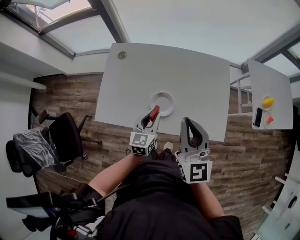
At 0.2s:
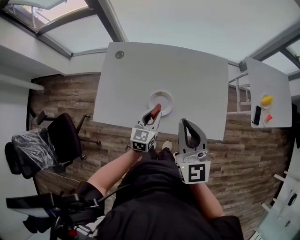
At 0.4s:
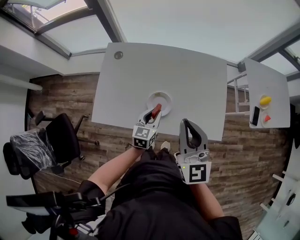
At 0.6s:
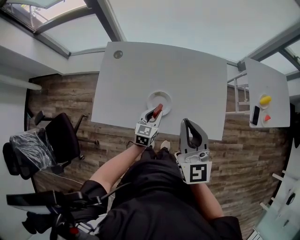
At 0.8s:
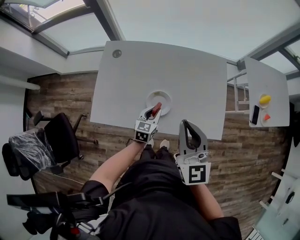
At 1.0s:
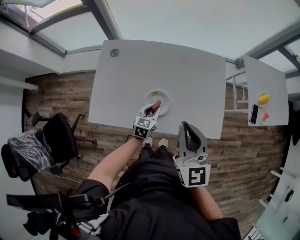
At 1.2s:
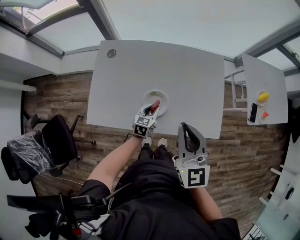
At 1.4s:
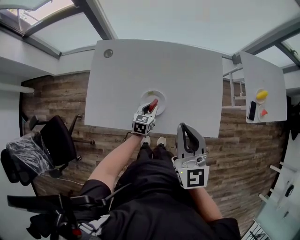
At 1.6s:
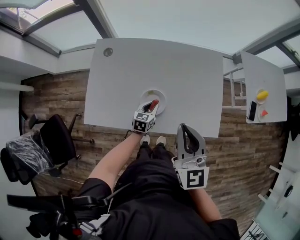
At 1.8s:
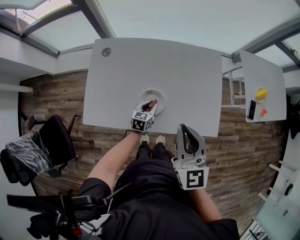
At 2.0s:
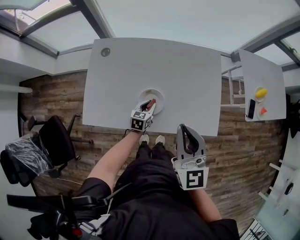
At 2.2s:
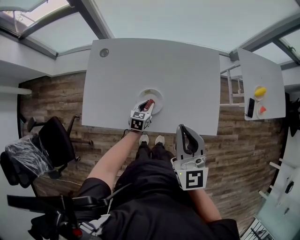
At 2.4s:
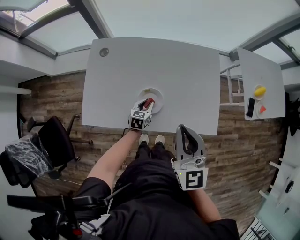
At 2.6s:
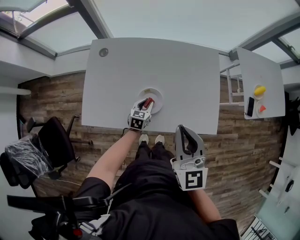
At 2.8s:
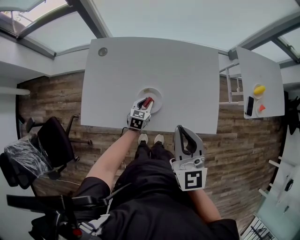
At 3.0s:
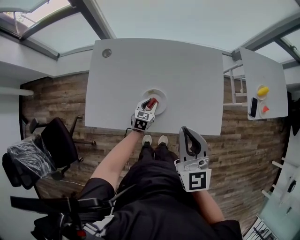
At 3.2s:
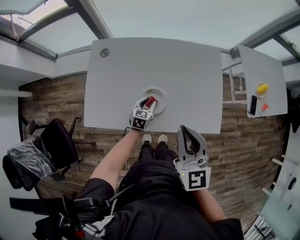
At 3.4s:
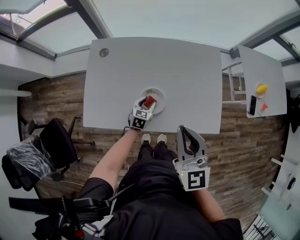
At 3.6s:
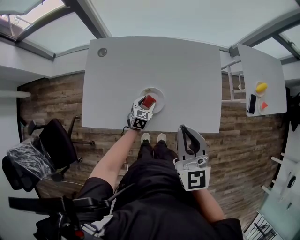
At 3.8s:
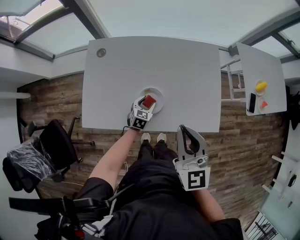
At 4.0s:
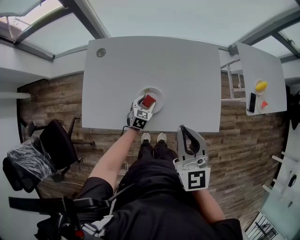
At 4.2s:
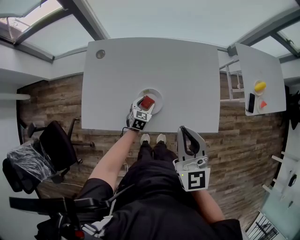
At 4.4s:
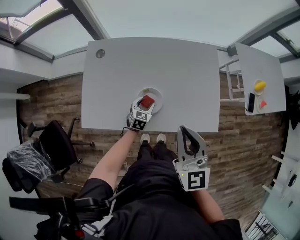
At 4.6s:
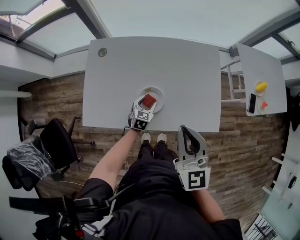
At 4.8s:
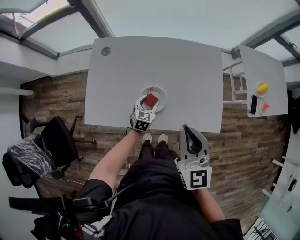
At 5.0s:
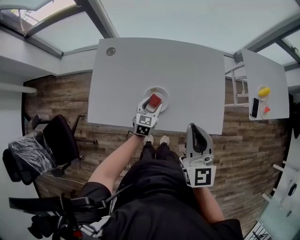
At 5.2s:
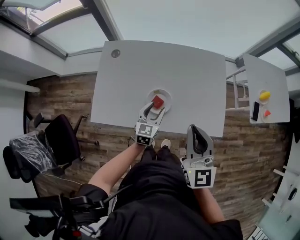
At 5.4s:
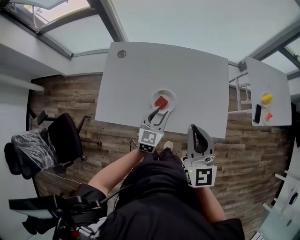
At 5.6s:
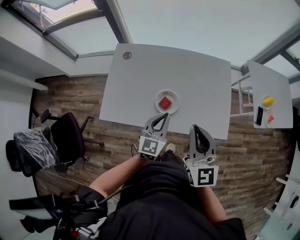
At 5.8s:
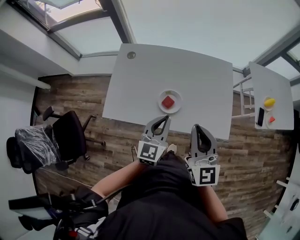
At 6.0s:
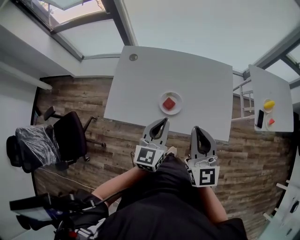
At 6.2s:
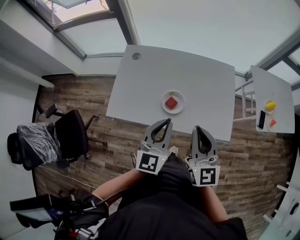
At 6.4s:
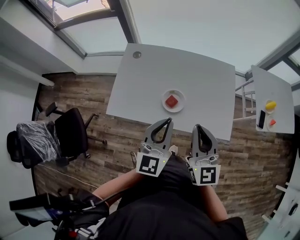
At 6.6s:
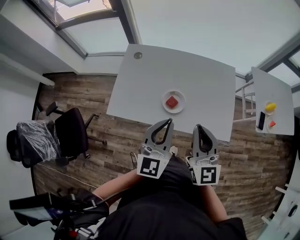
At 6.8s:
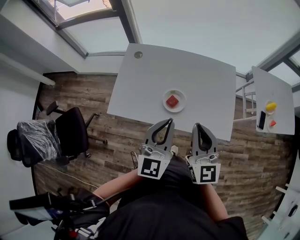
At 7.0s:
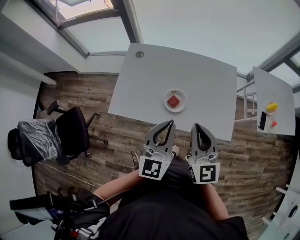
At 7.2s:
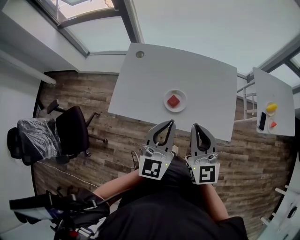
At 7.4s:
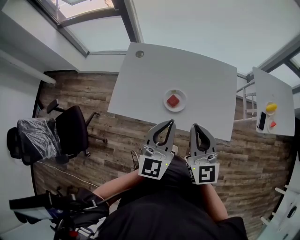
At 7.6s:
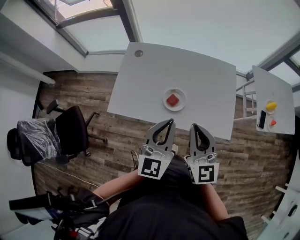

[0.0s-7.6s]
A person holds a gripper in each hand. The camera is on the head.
0.0s to 1.6s: The left gripper is displaced downward by about 15 cm.
1.6s to 3.0s: The grippers make only small movements.
3.0s to 4.6s: The left gripper opens.
4.6s to 6.0s: The right gripper heads backward, covering roughly 5 cm; the left gripper goes about 35 cm upward and backward, changes its angle by some 30 degrees, and closes.
6.0s to 7.6s: The left gripper shifts roughly 5 cm upward.

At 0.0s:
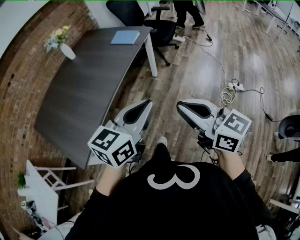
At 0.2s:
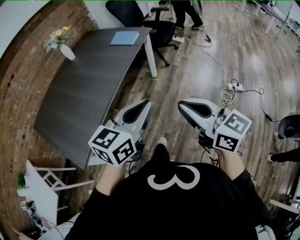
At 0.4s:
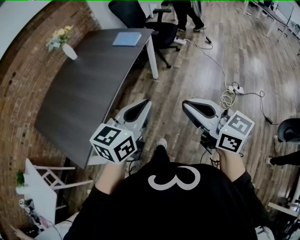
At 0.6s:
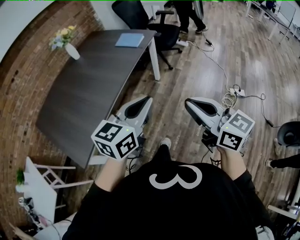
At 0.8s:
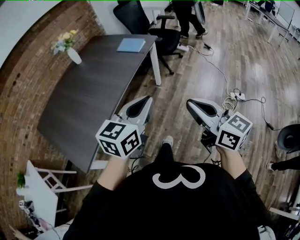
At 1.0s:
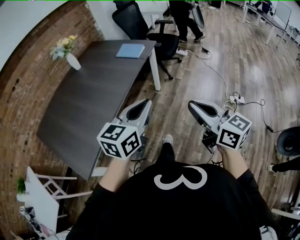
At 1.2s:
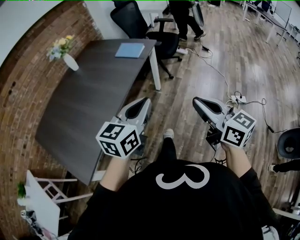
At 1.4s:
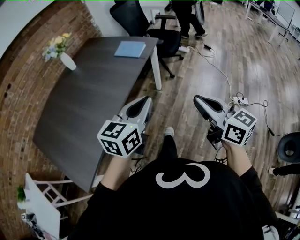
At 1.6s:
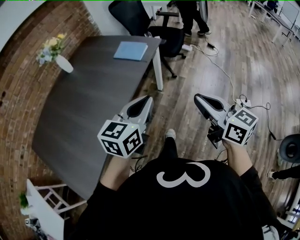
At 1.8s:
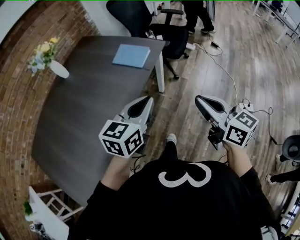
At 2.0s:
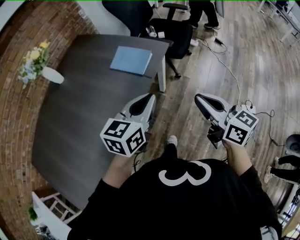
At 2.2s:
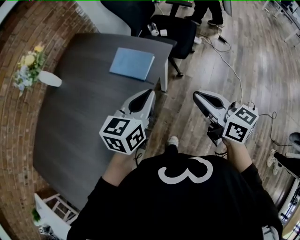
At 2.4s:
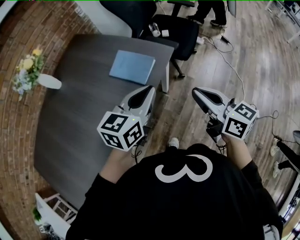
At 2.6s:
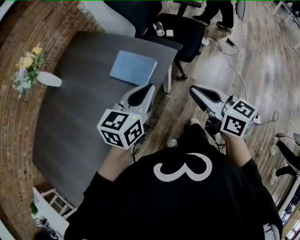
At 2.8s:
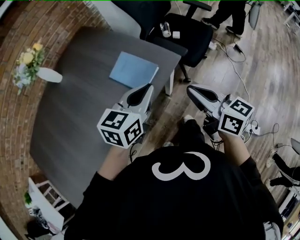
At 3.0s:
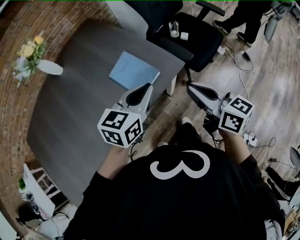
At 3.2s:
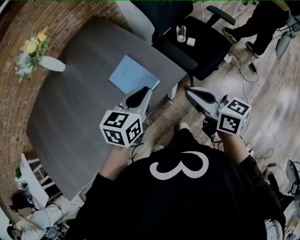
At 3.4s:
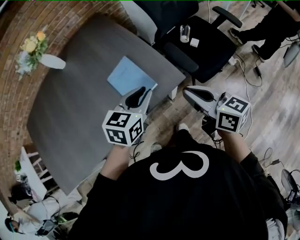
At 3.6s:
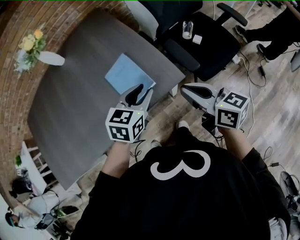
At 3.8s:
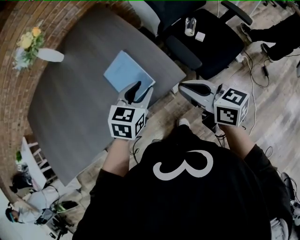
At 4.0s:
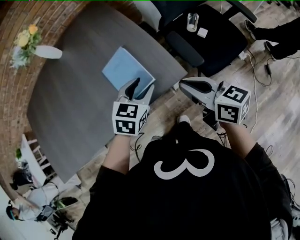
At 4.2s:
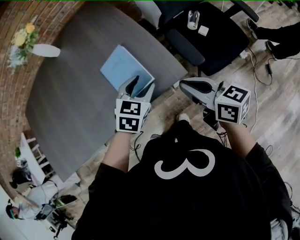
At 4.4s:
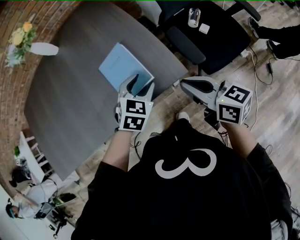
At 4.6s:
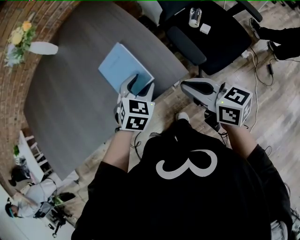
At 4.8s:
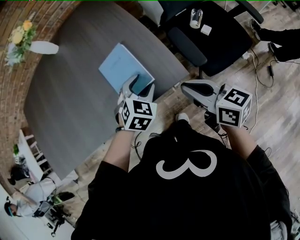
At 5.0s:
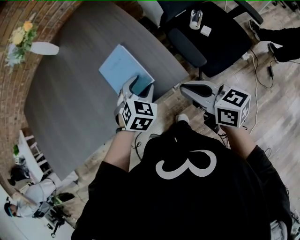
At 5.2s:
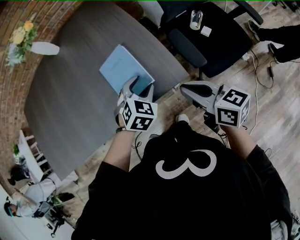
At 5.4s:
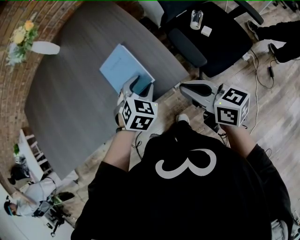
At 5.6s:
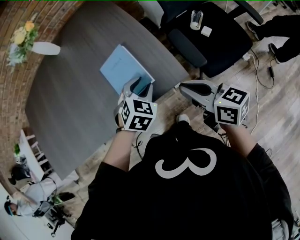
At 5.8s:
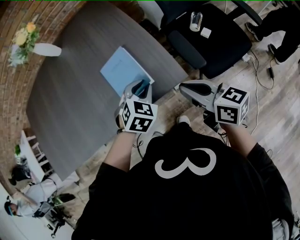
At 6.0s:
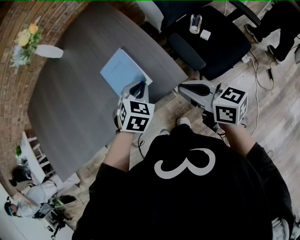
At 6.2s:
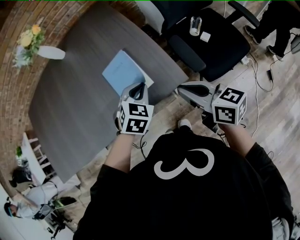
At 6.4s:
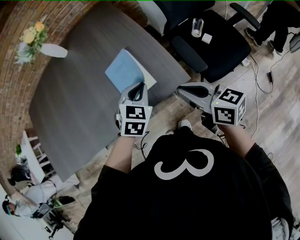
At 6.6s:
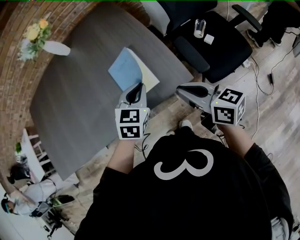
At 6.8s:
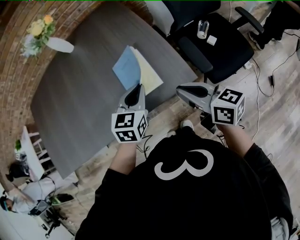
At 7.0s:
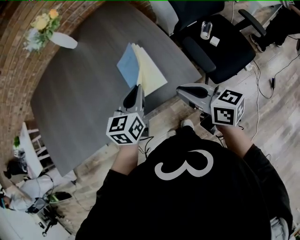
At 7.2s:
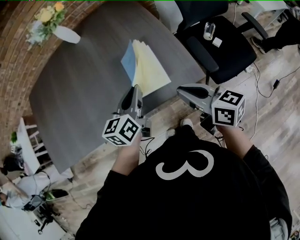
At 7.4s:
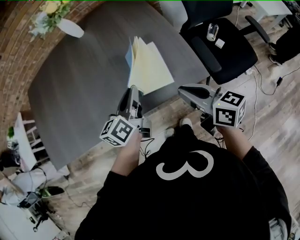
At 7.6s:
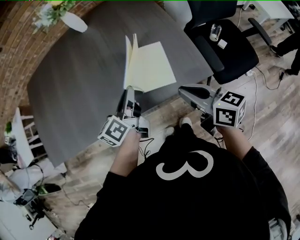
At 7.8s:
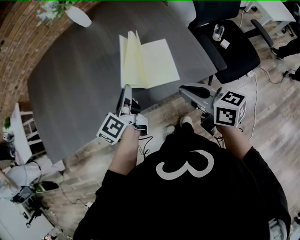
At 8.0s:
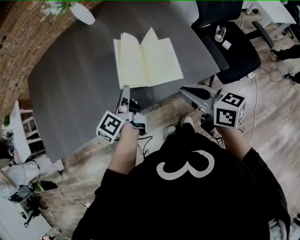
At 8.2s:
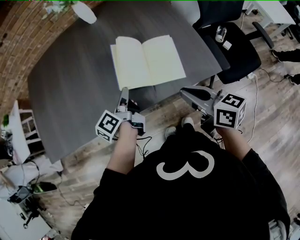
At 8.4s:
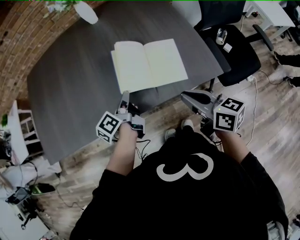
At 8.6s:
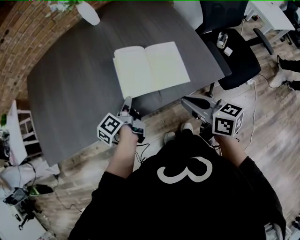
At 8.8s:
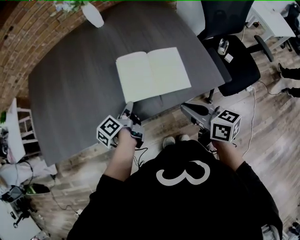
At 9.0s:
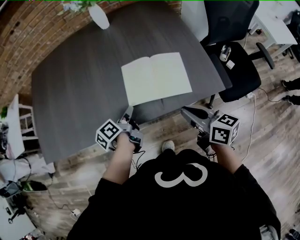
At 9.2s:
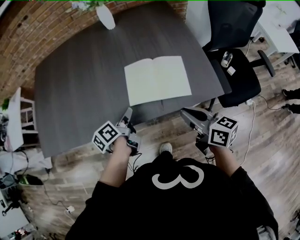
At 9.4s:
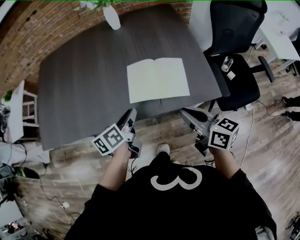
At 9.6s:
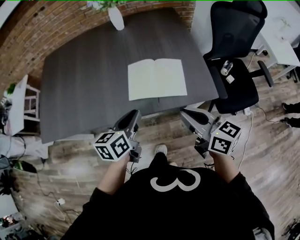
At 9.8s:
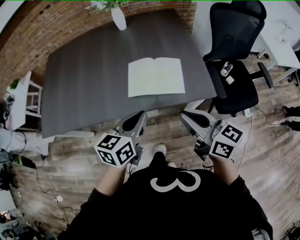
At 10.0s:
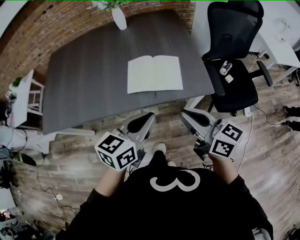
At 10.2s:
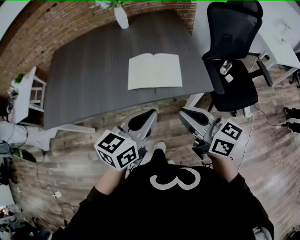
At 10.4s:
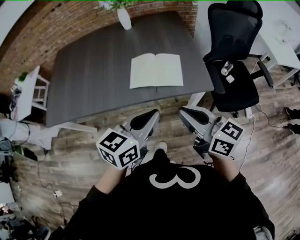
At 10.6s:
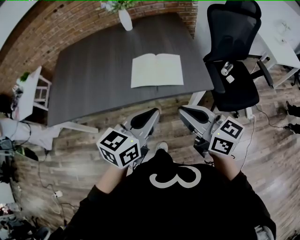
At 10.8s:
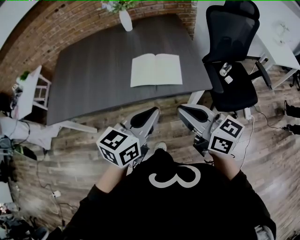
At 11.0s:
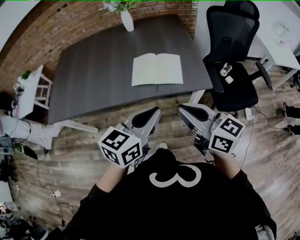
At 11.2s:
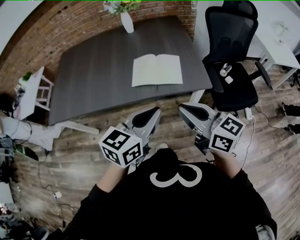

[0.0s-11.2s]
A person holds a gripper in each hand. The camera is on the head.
0.0s to 1.6s: Both grippers travel together forward, some 25 cm.
1.6s to 3.2s: The pair of grippers is taken approximately 50 cm. The left gripper changes its angle by about 30 degrees. The right gripper turns by roughly 30 degrees.
3.2s to 4.8s: The left gripper goes about 15 cm downward and forward, turns by approximately 40 degrees, and opens. Meanwhile the right gripper goes roughly 10 cm downward and forward.
4.8s to 6.4s: The left gripper closes up.
6.4s to 8.0s: The left gripper is displaced to the left by approximately 25 cm, and rotates around the line of its fingers by roughly 90 degrees, counterclockwise from behind. Meanwhile the right gripper shifts approximately 15 cm to the left.
8.0s to 9.6s: The right gripper travels upward by about 5 cm. Meanwhile the left gripper travels backward by roughly 10 cm, moves roughly 10 cm downward and comes back, and swivels some 40 degrees.
9.6s to 11.2s: The left gripper is displaced backward, upward and to the right by approximately 20 cm, and turns by some 30 degrees. Meanwhile the right gripper goes roughly 15 cm backward and upward.

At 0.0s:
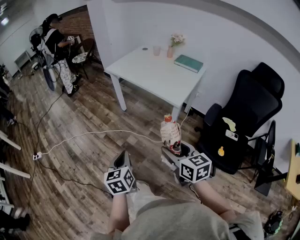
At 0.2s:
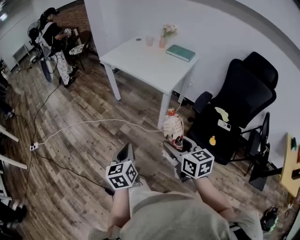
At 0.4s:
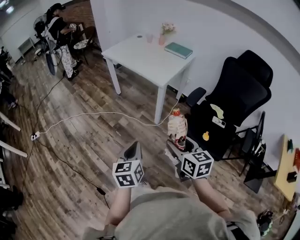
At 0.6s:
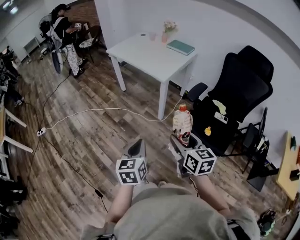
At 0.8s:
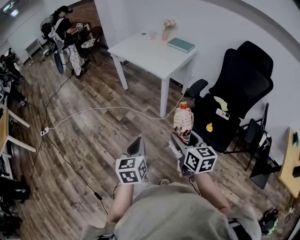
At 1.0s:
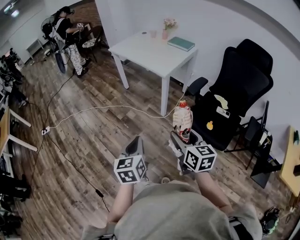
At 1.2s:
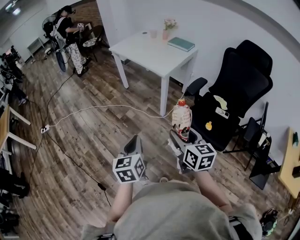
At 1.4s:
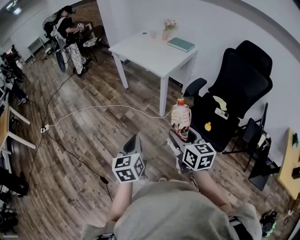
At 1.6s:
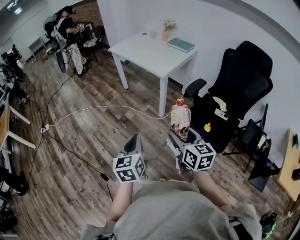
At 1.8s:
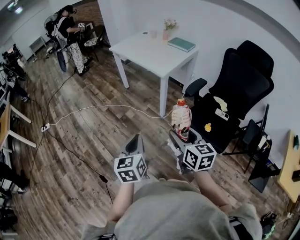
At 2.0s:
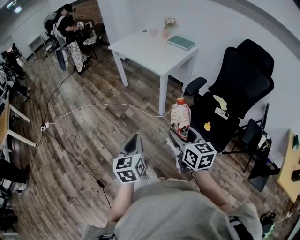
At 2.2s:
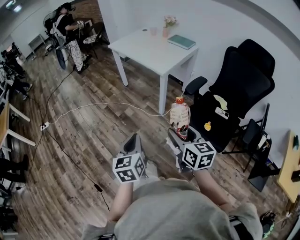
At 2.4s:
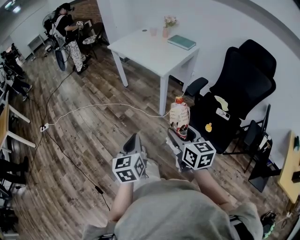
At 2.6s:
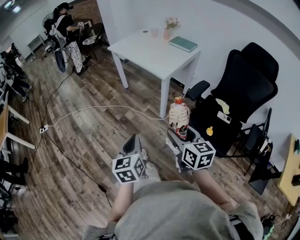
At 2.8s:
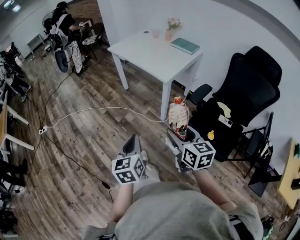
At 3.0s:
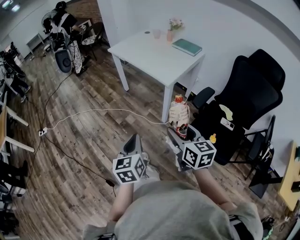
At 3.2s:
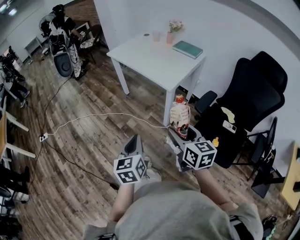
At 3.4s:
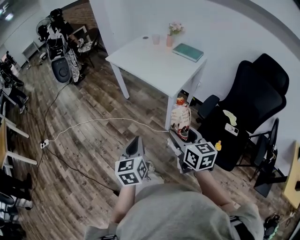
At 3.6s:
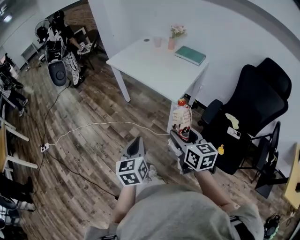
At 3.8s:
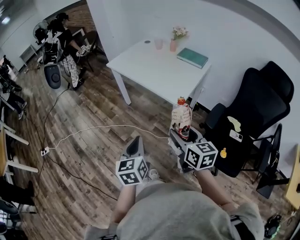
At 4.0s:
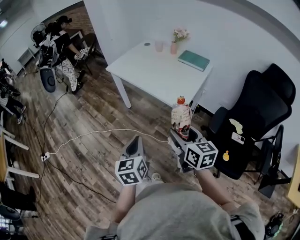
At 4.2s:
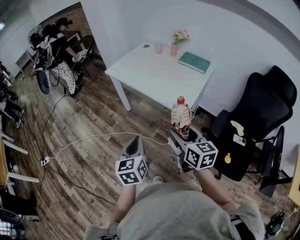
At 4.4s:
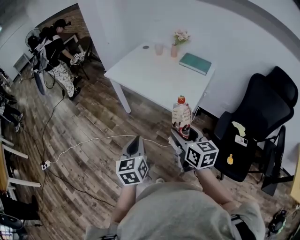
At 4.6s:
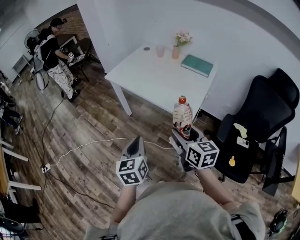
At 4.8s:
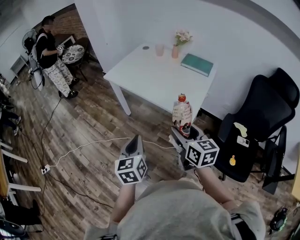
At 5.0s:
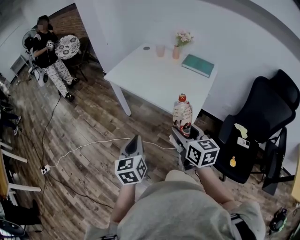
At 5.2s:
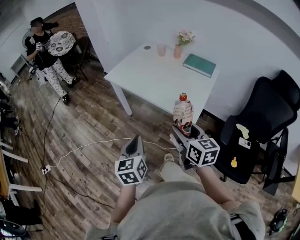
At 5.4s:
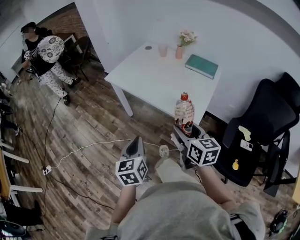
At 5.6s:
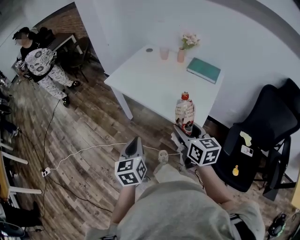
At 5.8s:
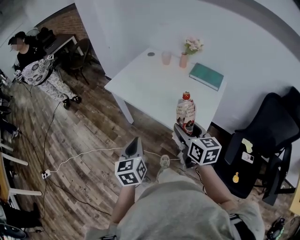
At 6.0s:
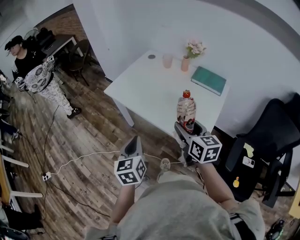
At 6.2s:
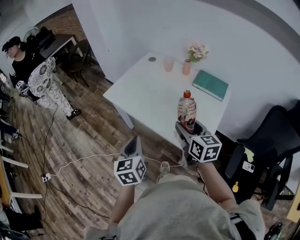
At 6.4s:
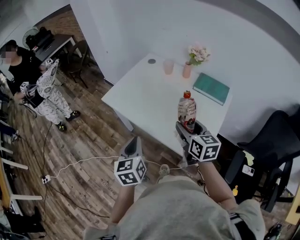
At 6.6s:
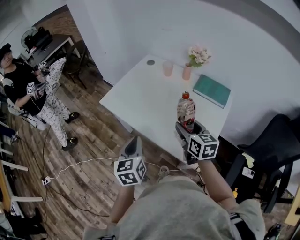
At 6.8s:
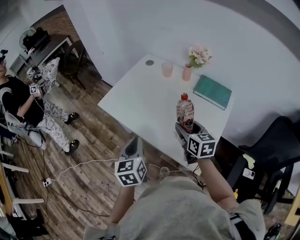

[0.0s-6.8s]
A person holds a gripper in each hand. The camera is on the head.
0.0s to 1.4s: Both grippers move backward and to the right, roughly 25 cm.
1.4s to 2.8s: The two grippers go roughly 10 cm forward.
2.8s to 4.0s: The two grippers go some 25 cm forward.
4.0s to 5.4s: Both grippers move forward, some 15 cm.
5.4s to 6.8s: The grippers both shift forward by some 30 cm.
